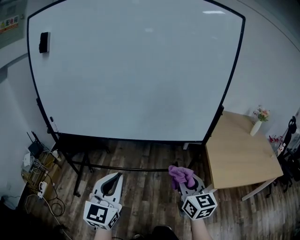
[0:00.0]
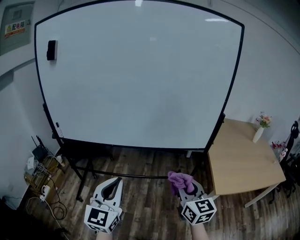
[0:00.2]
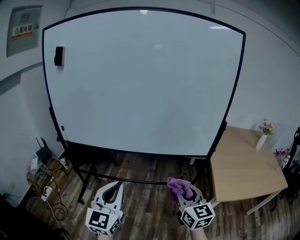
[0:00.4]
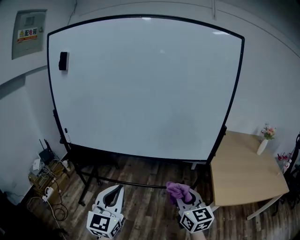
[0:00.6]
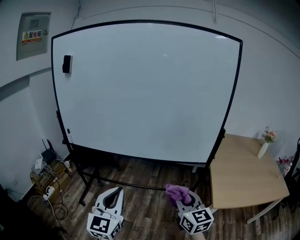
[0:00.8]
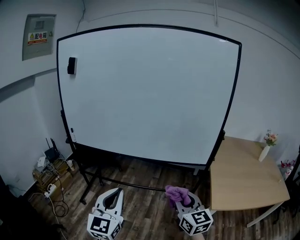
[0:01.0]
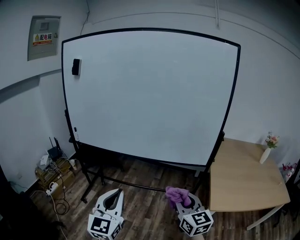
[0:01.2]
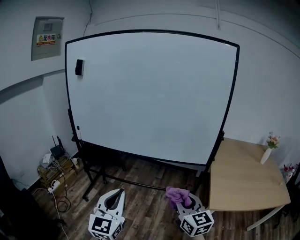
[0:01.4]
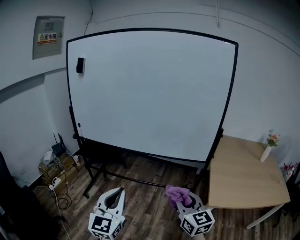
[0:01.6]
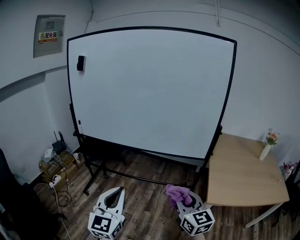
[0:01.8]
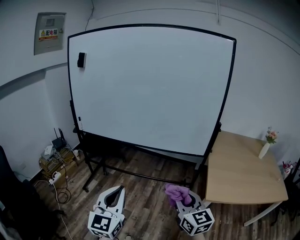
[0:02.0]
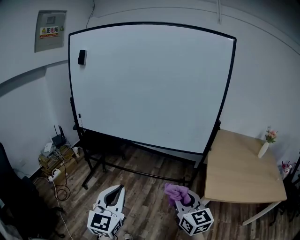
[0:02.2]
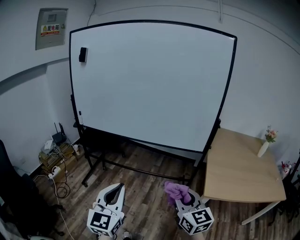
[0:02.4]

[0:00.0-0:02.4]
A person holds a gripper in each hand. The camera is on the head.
0:00.0 to 0:01.2: The two grippers go roughly 10 cm backward.
0:01.2 to 0:02.4: Both grippers move backward, about 10 cm.

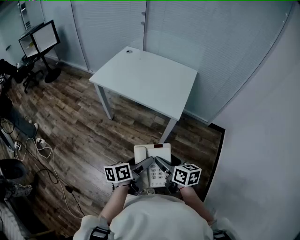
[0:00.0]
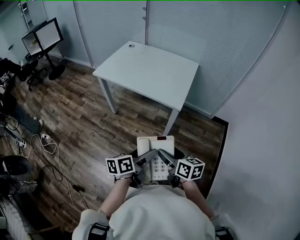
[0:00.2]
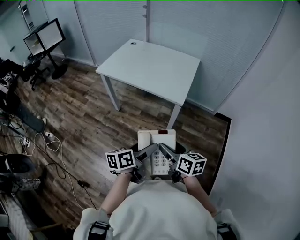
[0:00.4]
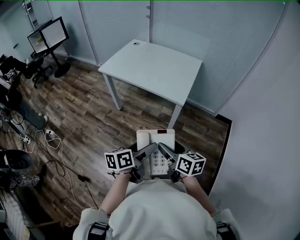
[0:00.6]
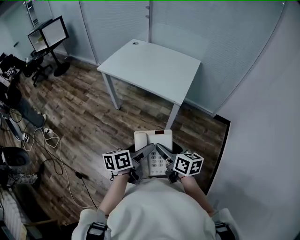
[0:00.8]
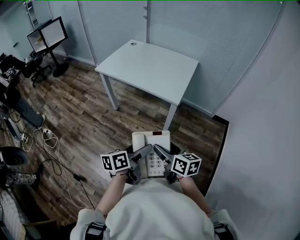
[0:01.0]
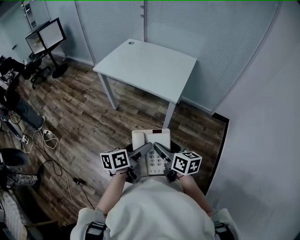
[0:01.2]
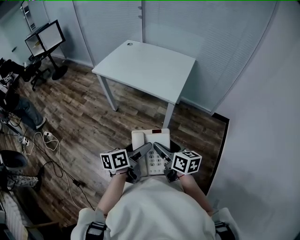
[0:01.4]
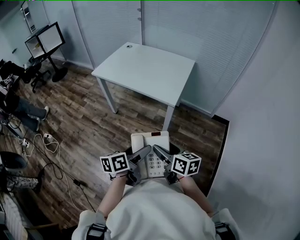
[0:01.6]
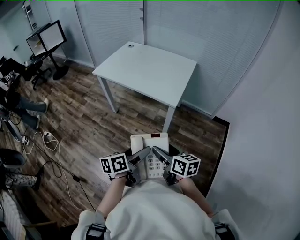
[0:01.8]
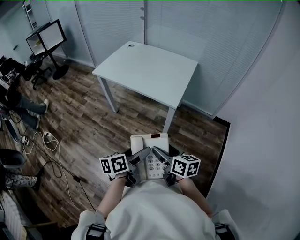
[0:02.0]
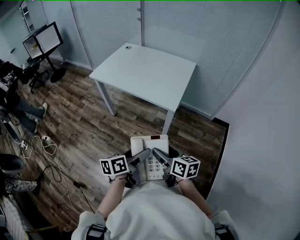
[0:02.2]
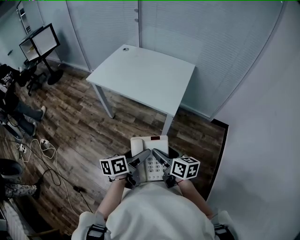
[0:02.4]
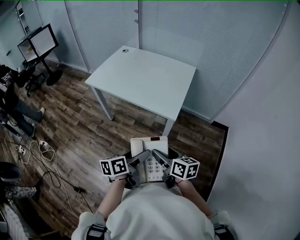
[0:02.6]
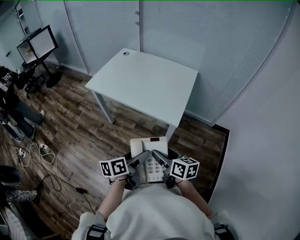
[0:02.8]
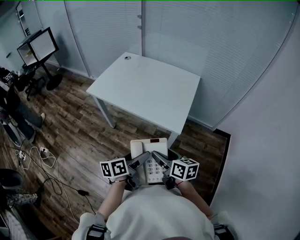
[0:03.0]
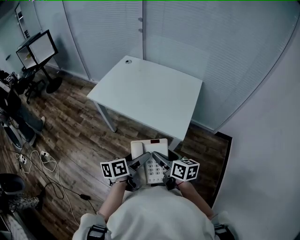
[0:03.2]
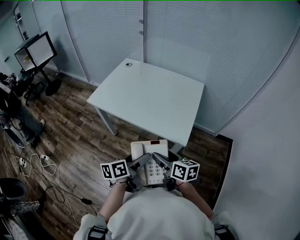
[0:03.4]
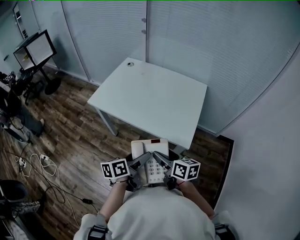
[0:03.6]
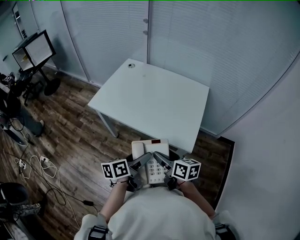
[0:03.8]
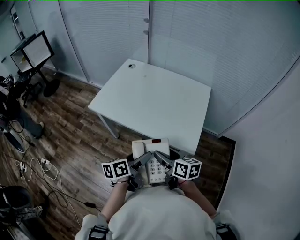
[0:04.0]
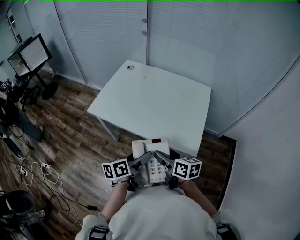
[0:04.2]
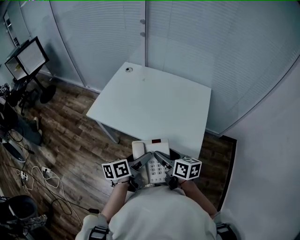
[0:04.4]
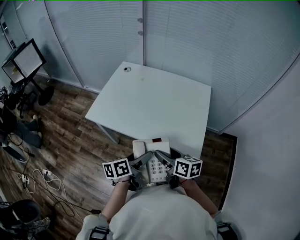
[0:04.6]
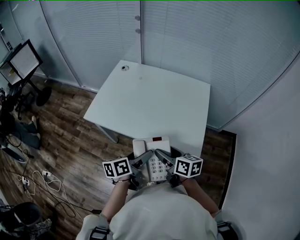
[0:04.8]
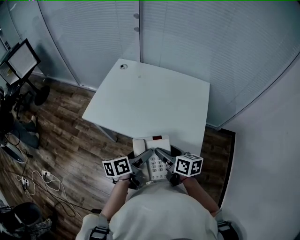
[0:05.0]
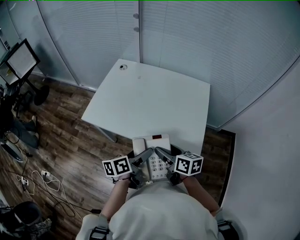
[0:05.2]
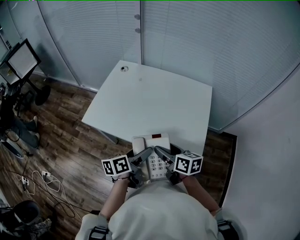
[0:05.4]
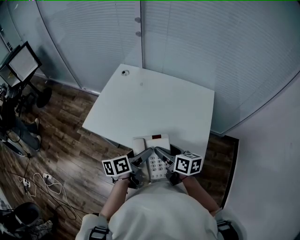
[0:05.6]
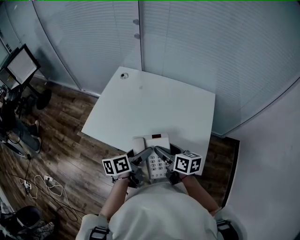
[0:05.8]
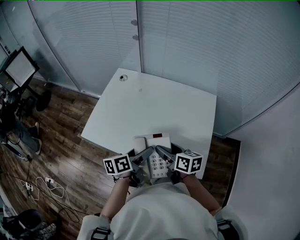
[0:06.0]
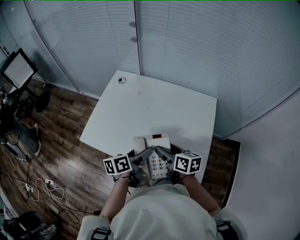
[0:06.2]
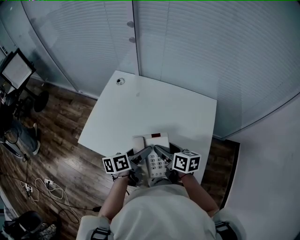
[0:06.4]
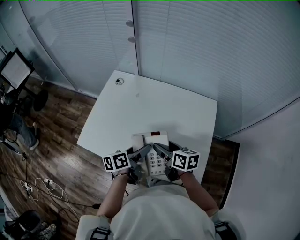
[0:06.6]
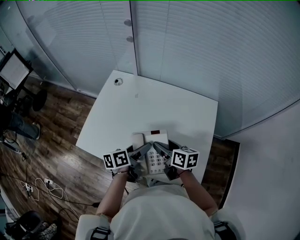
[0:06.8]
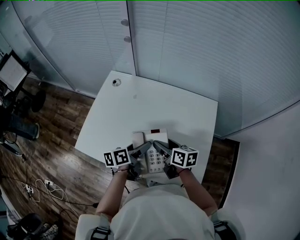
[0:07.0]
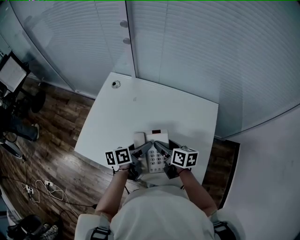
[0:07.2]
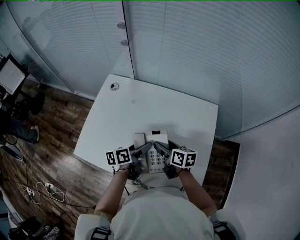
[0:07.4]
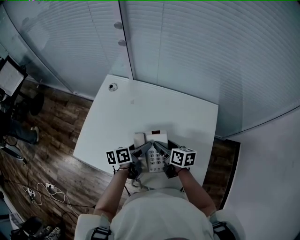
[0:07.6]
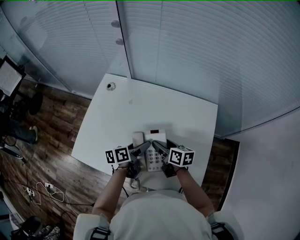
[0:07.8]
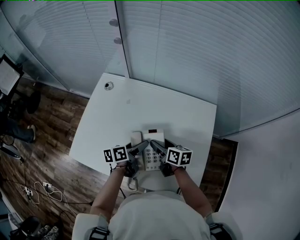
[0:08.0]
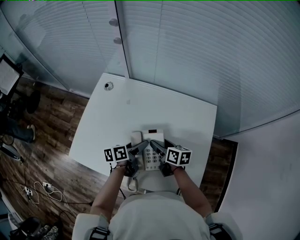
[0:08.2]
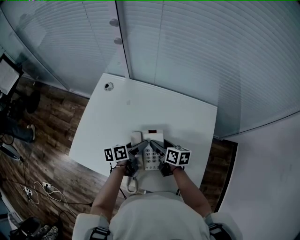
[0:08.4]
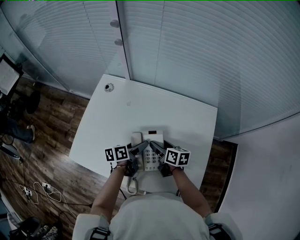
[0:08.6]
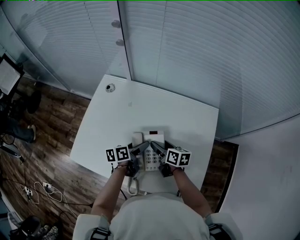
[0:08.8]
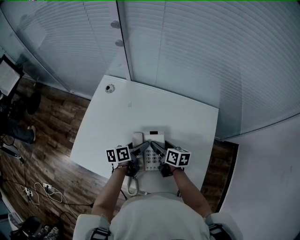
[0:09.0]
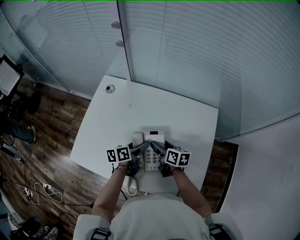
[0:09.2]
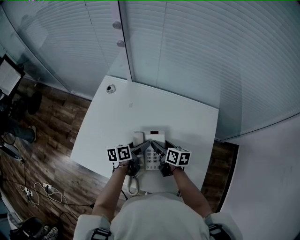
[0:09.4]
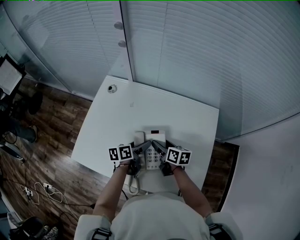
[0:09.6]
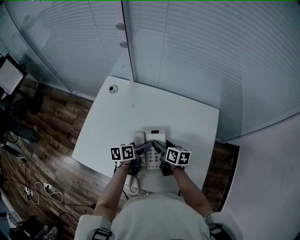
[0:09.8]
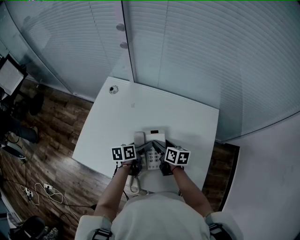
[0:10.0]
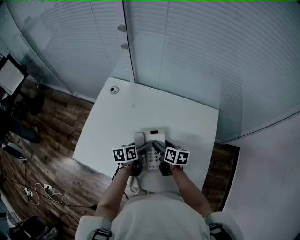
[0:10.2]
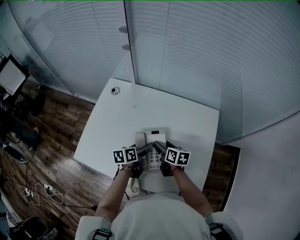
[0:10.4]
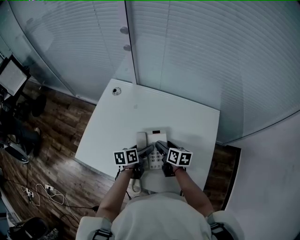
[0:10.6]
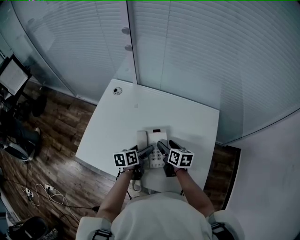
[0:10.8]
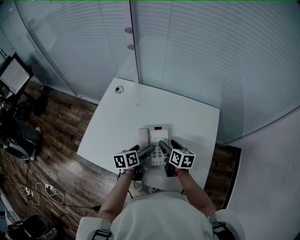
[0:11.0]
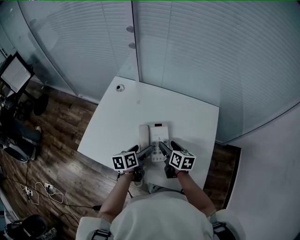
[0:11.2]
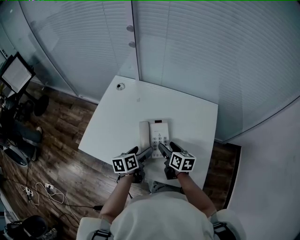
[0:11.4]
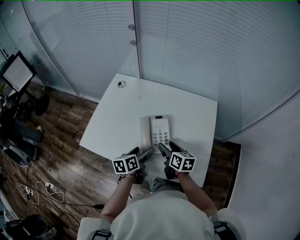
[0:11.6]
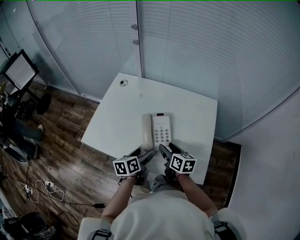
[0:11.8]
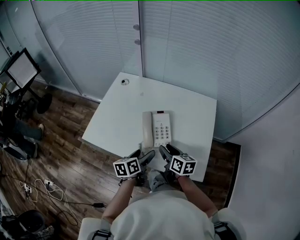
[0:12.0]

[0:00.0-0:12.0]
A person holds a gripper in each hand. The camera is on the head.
0:00.0 to 0:01.6: The left gripper changes place by approximately 5 cm.
0:01.6 to 0:03.0: The grippers both shift forward by some 15 cm.
0:03.0 to 0:04.4: The two grippers go about 20 cm forward and to the left.
0:04.4 to 0:06.0: Both grippers travel together forward, about 20 cm.
0:06.0 to 0:07.6: The two grippers go some 20 cm forward and downward.
0:07.6 to 0:09.0: The right gripper ends up roughly 5 cm from where it was; the left gripper ends up approximately 5 cm from where it was.
0:09.0 to 0:10.4: The grippers make only small movements.
0:10.4 to 0:12.0: The left gripper shifts about 15 cm backward. The right gripper heads backward and upward, covering approximately 20 cm, and closes its fingers.

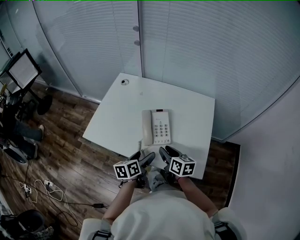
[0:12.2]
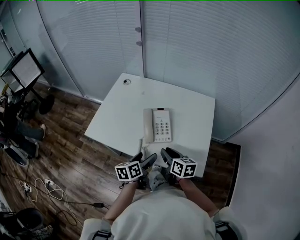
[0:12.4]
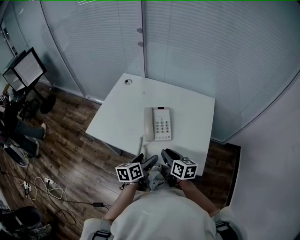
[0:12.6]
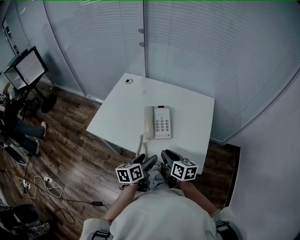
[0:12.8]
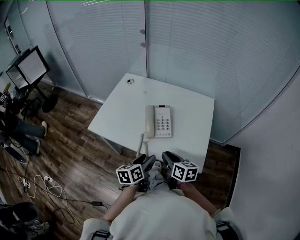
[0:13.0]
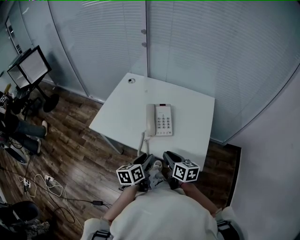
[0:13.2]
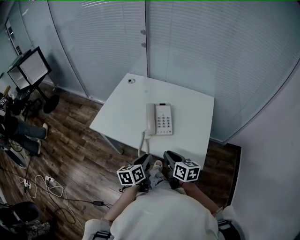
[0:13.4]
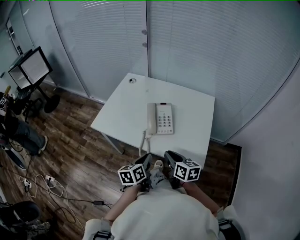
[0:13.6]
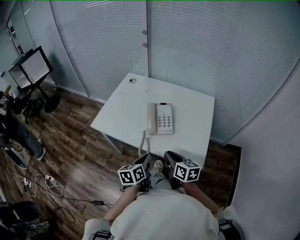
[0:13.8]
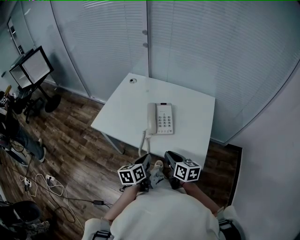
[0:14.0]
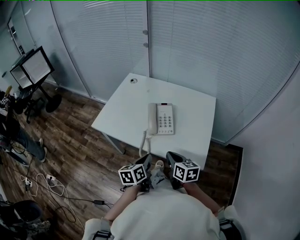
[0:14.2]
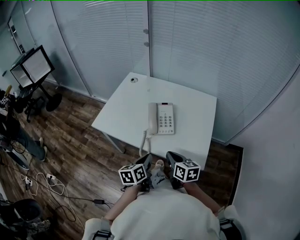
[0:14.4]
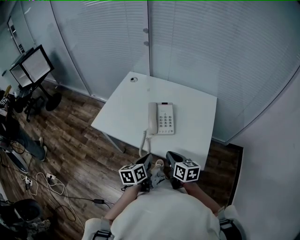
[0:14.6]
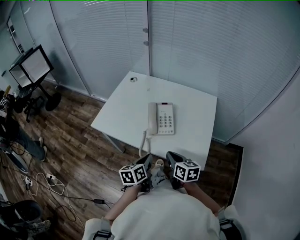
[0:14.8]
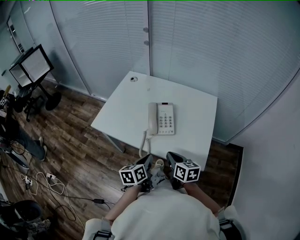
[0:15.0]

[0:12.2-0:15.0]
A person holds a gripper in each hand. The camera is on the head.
0:12.2 to 0:13.6: The grippers both shift backward by approximately 10 cm. The left gripper closes.
0:13.6 to 0:15.0: The grippers make only small movements.

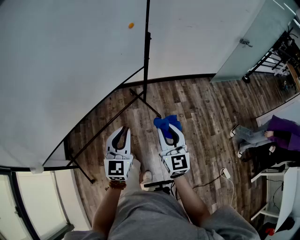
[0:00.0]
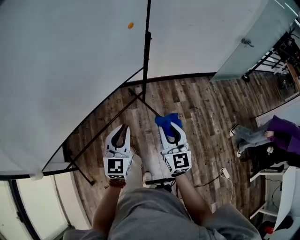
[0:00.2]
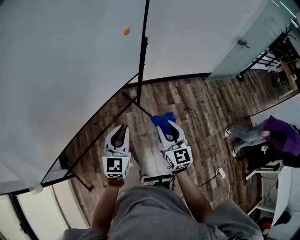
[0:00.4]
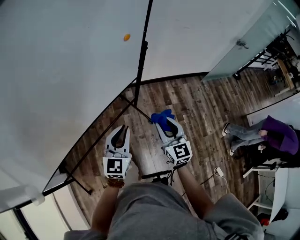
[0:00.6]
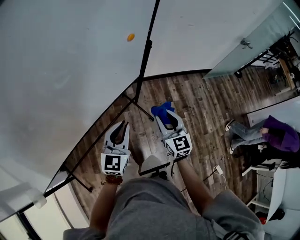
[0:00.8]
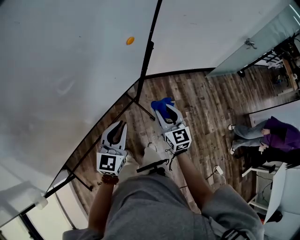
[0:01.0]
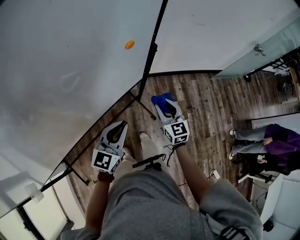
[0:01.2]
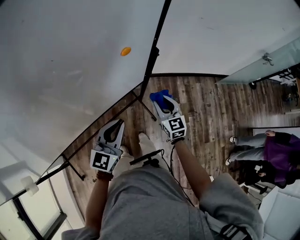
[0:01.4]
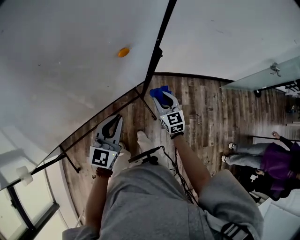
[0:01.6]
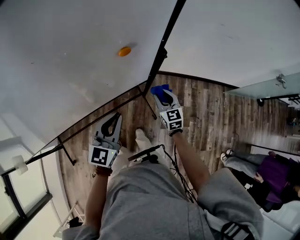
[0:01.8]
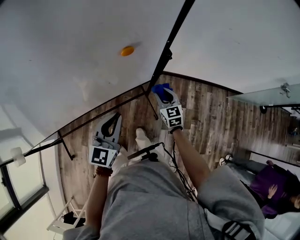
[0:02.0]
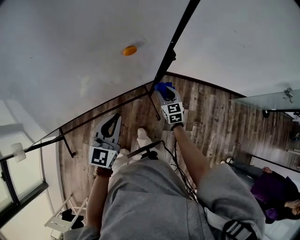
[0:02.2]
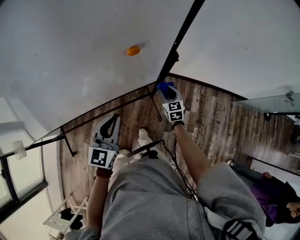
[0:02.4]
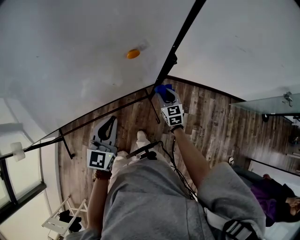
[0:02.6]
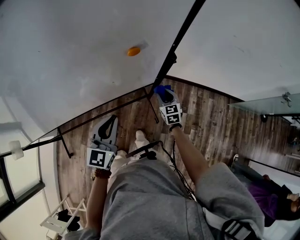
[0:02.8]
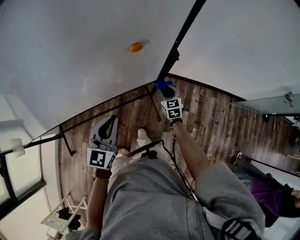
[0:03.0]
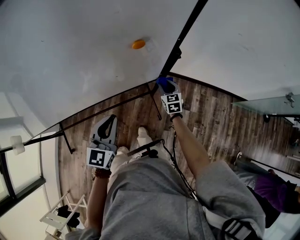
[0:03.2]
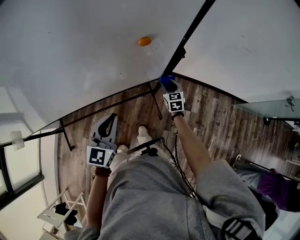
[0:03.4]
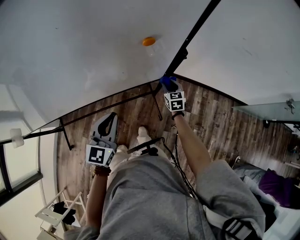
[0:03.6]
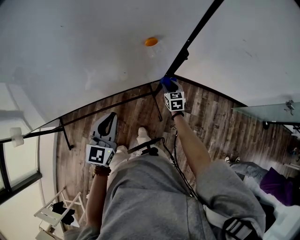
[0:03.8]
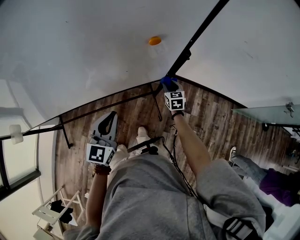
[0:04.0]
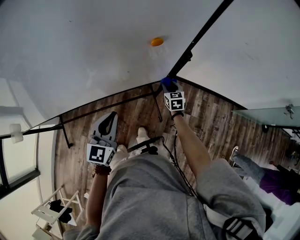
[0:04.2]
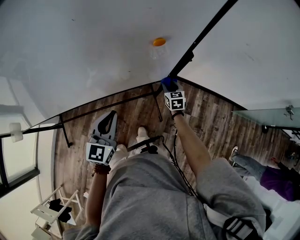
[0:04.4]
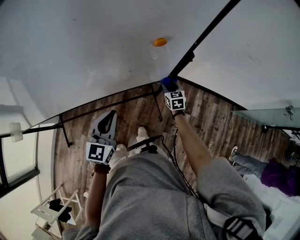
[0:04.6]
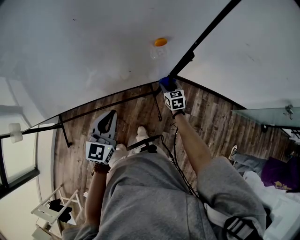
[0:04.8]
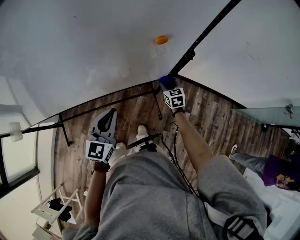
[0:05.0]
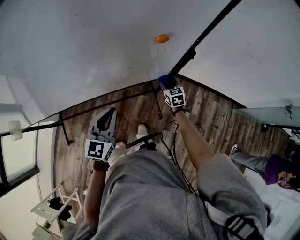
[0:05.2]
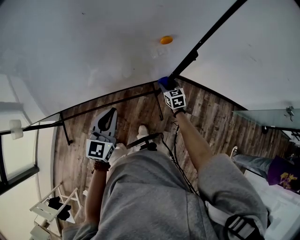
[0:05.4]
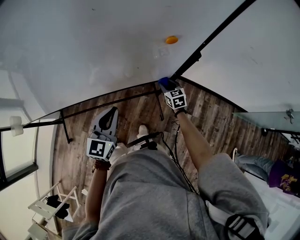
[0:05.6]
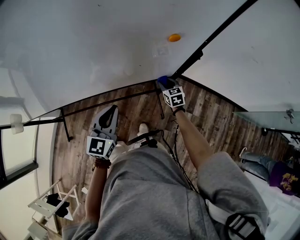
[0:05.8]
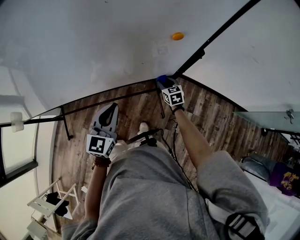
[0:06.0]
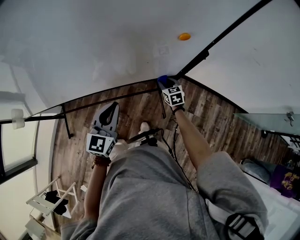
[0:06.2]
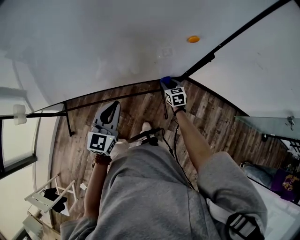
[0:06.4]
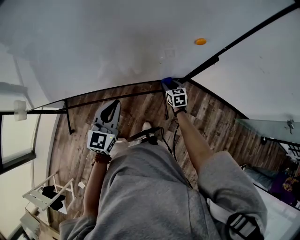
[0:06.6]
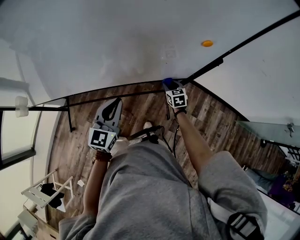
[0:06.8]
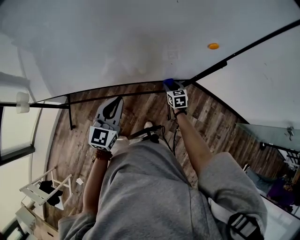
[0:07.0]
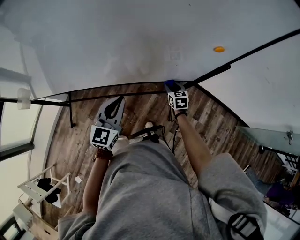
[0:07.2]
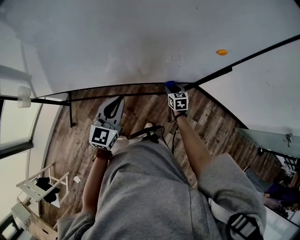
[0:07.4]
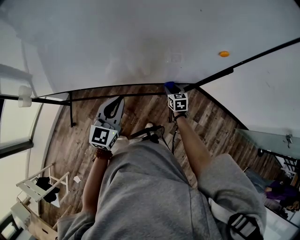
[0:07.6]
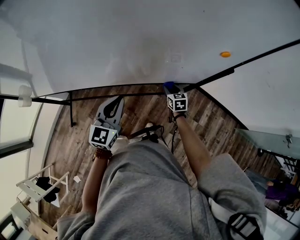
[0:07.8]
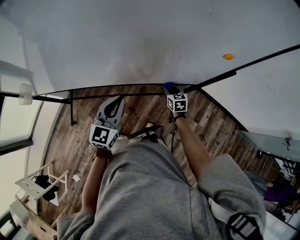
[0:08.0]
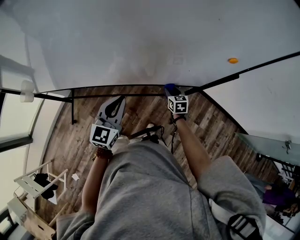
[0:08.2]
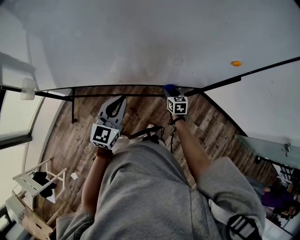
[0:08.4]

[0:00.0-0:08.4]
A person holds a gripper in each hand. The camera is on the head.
0:00.0 to 0:01.4: The two grippers go some 35 cm forward. The right gripper changes its angle by roughly 20 degrees.
0:01.4 to 0:02.8: The right gripper heads downward and forward, covering some 15 cm, while the left gripper turns by roughly 20 degrees.
0:02.8 to 0:04.2: The grippers make only small movements.
0:04.2 to 0:05.6: The right gripper moves to the left, roughly 5 cm.
0:05.6 to 0:07.0: Both grippers move to the left, approximately 10 cm.
0:07.0 to 0:08.4: The grippers both shift to the left by some 5 cm.
